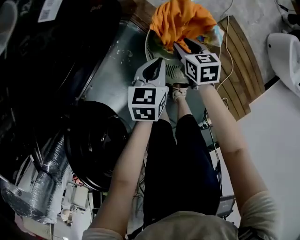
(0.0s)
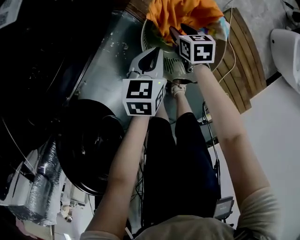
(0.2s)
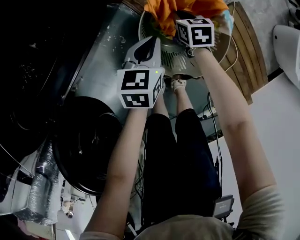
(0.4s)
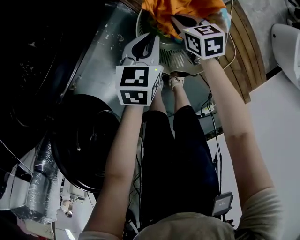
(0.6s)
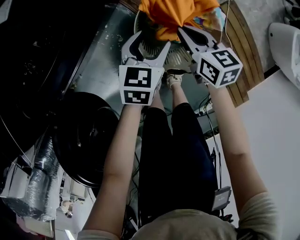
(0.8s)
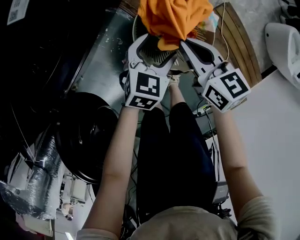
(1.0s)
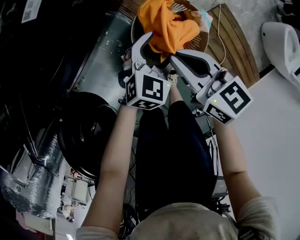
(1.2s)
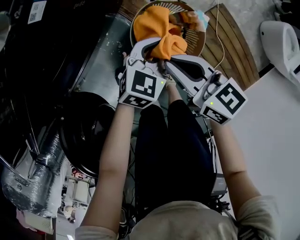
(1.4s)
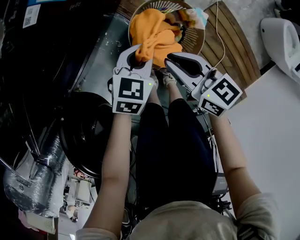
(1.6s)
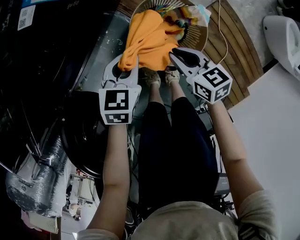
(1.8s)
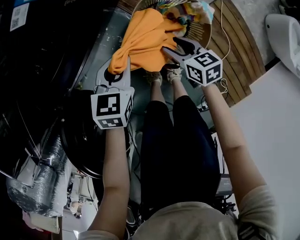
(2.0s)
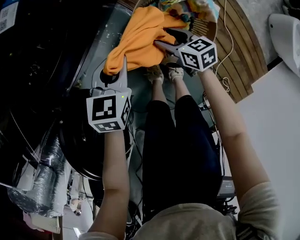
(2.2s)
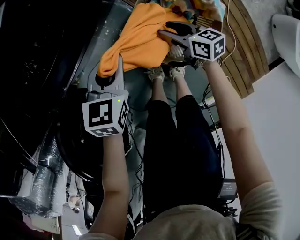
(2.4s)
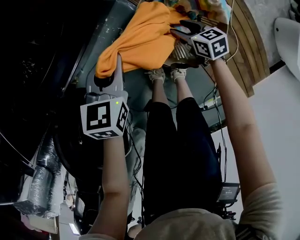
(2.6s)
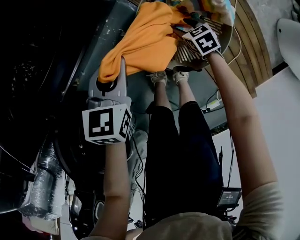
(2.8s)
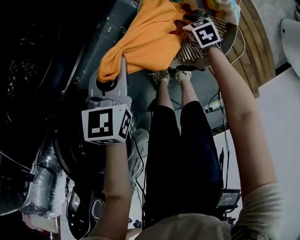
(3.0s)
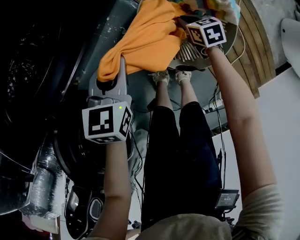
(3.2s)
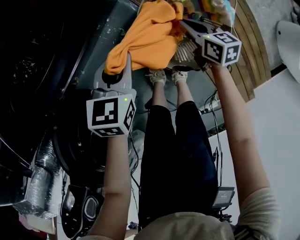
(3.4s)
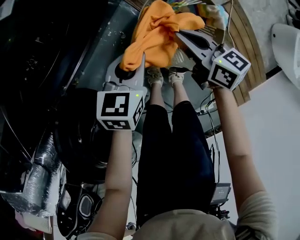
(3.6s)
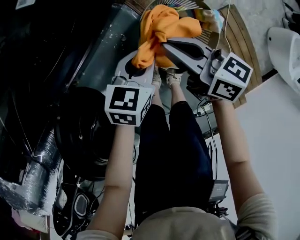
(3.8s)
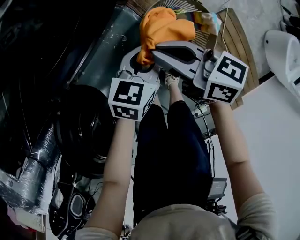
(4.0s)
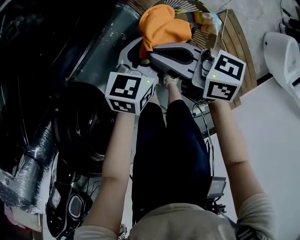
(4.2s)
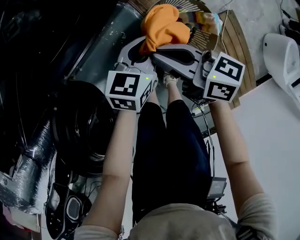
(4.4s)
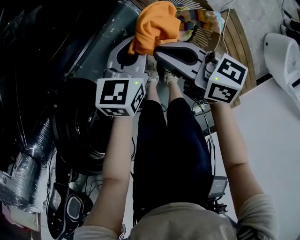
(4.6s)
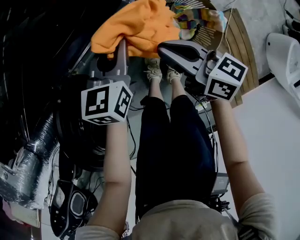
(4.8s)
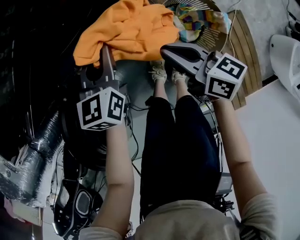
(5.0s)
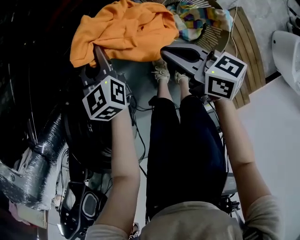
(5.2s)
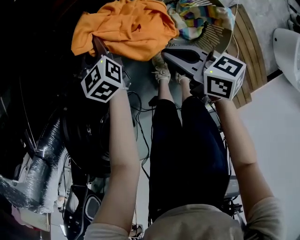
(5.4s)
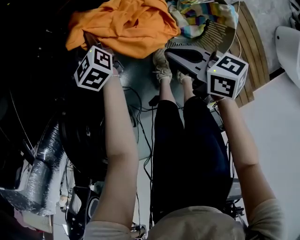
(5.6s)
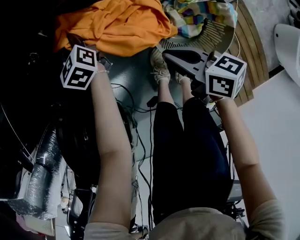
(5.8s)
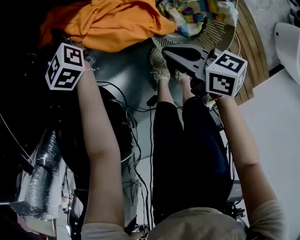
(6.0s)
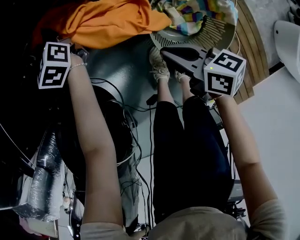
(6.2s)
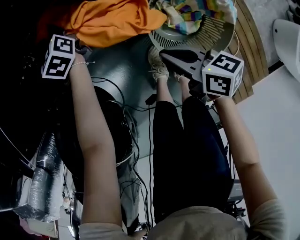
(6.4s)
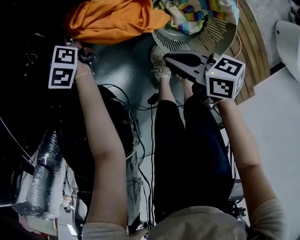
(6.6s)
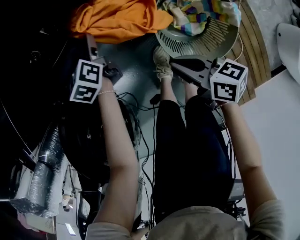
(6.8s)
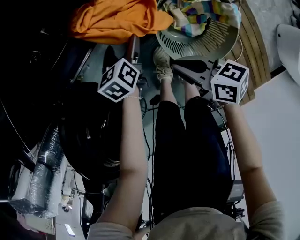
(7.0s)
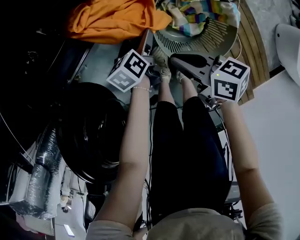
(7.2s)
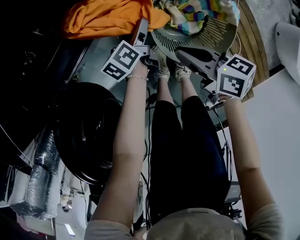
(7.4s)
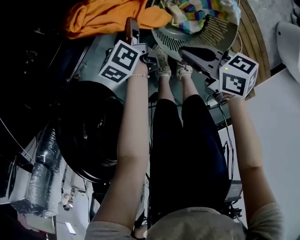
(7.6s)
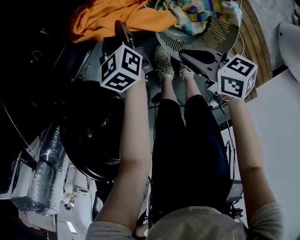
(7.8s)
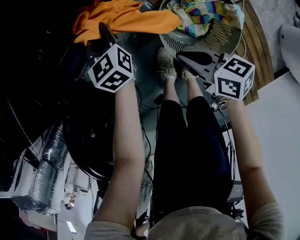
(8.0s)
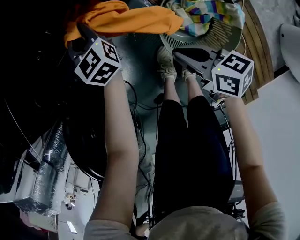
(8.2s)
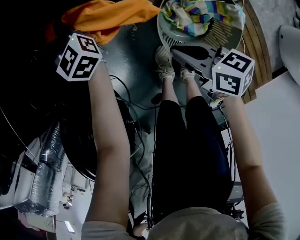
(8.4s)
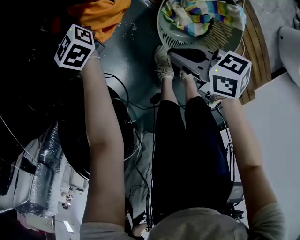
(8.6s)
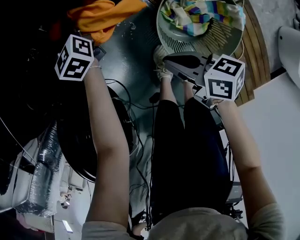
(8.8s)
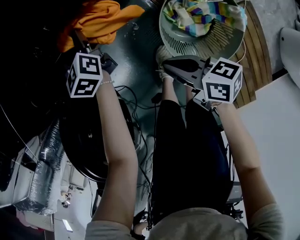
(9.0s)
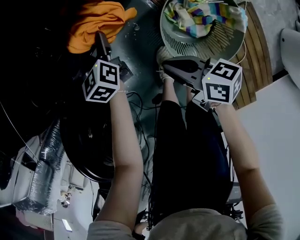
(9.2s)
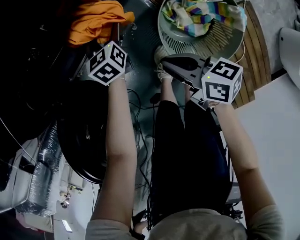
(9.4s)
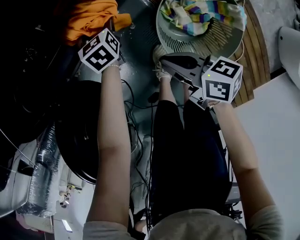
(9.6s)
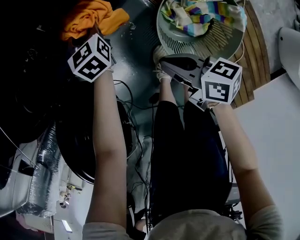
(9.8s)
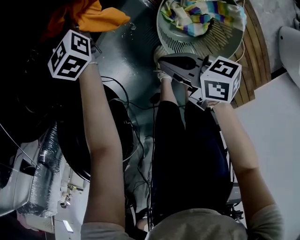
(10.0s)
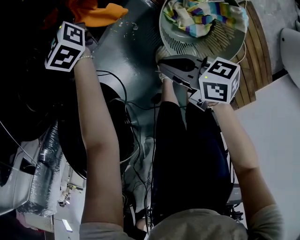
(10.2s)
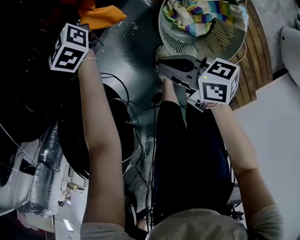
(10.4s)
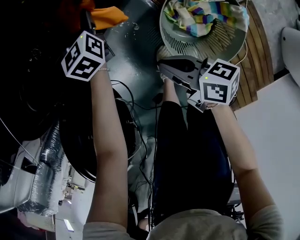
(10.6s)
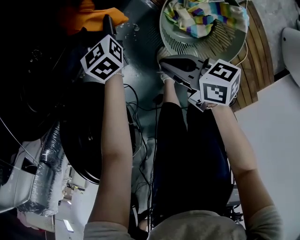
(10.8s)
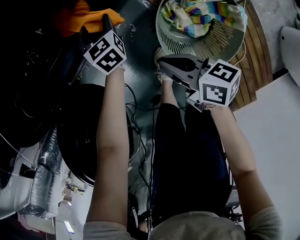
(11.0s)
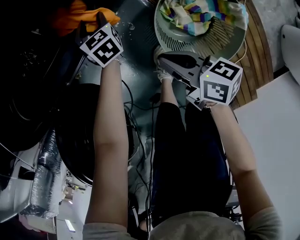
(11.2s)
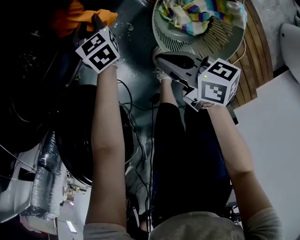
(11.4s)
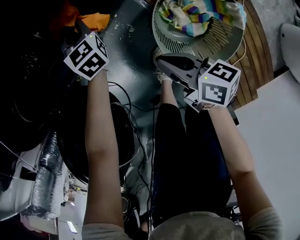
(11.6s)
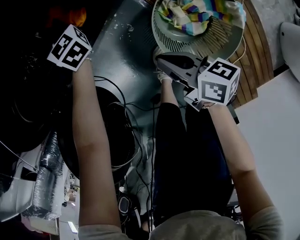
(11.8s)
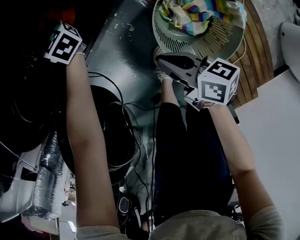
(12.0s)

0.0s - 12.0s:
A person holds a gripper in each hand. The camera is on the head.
0.0s - 1.6s: The right gripper swings up and down, some 35 cm each way, with 2 reversals, turns by some 30 degrees, and closes its fingers. Meanwhile the left gripper goes some 5 cm upward, changes its angle by approximately 20 degrees, and opens, then closes once more.
1.6s - 3.0s: The right gripper travels downward by some 35 cm, points its fingers roughly 40 degrees further downward, and opens its fingers; the left gripper travels to the left by approximately 10 cm, and changes its angle by roughly 20 degrees.
3.0s - 4.4s: The left gripper shifts about 10 cm to the right, and opens and closes again, while the right gripper moves upward, roughly 40 cm, tilts its fingers roughly 50 degrees upward, and closes.
4.4s - 6.0s: The right gripper moves downward, about 10 cm. Meanwhile the left gripper reaches some 10 cm downward, then returns, and swivels about 50 degrees.
6.0s - 7.6s: The left gripper moves some 25 cm, rolls counterclockwise, seen from behind, by approximately 40 degrees, and opens and closes again.
7.6s - 9.0s: The right gripper shifts approximately 5 cm to the left. Meanwhile the left gripper heads forward, to the left and upward, covering roughly 20 cm, turns by approximately 40 degrees, and opens up.
9.0s - 10.4s: The left gripper is displaced to the right and forward by approximately 10 cm.
10.4s - 12.0s: The left gripper reaches roughly 10 cm backward, then returns, changes its angle by about 20 degrees, and closes up.

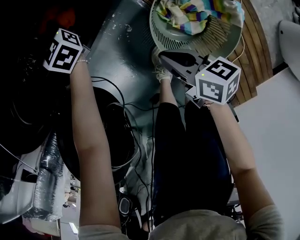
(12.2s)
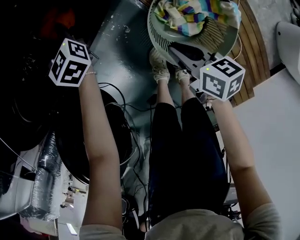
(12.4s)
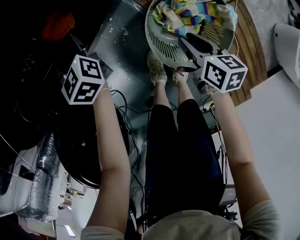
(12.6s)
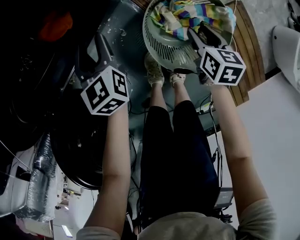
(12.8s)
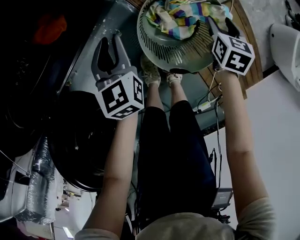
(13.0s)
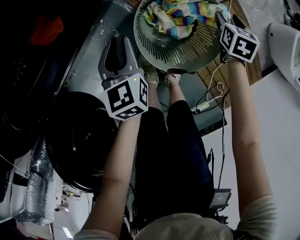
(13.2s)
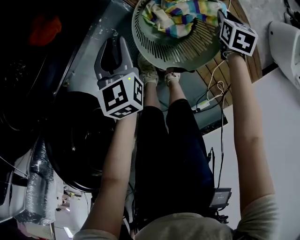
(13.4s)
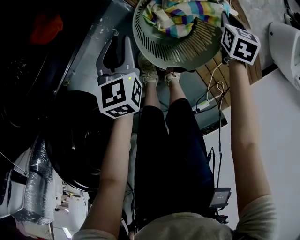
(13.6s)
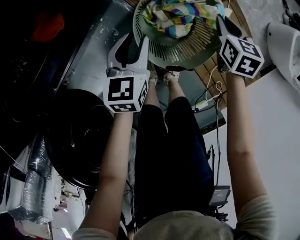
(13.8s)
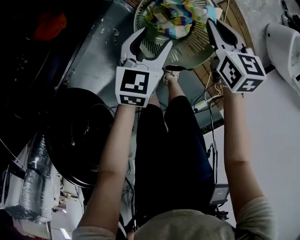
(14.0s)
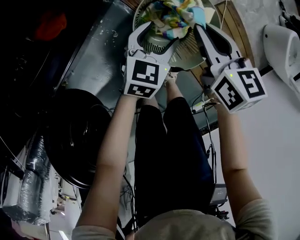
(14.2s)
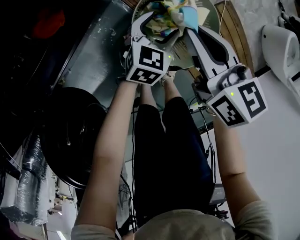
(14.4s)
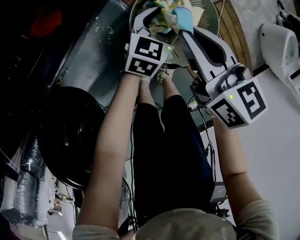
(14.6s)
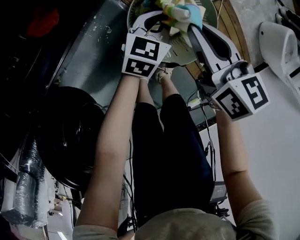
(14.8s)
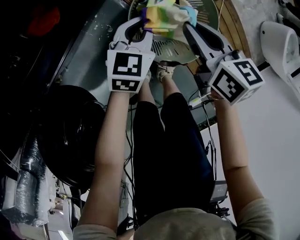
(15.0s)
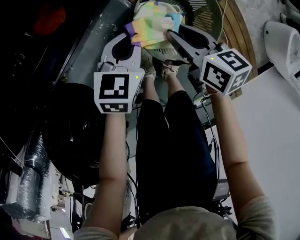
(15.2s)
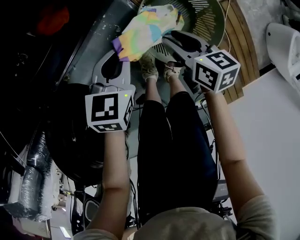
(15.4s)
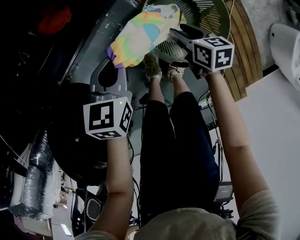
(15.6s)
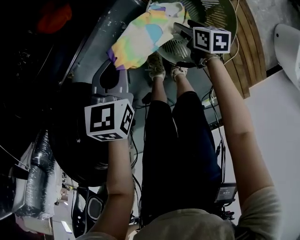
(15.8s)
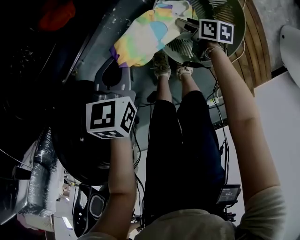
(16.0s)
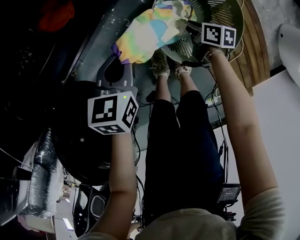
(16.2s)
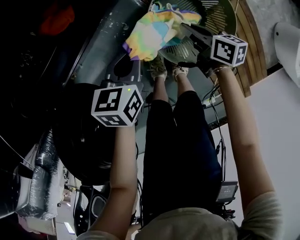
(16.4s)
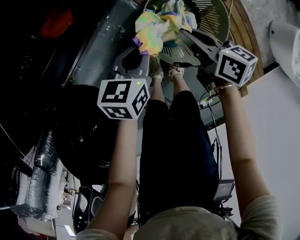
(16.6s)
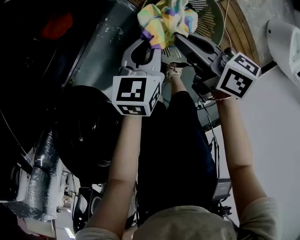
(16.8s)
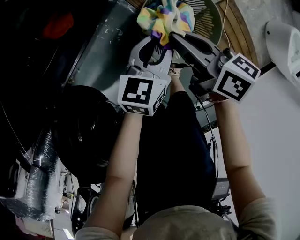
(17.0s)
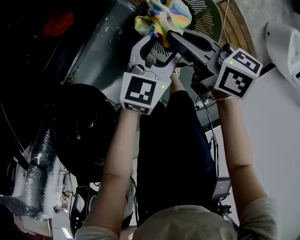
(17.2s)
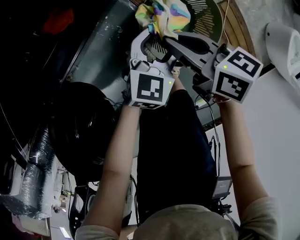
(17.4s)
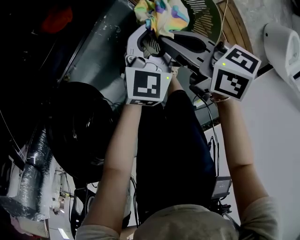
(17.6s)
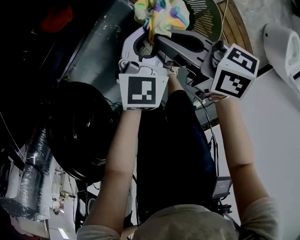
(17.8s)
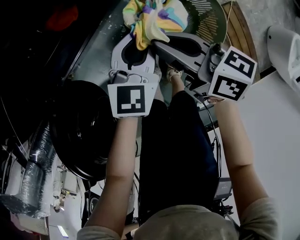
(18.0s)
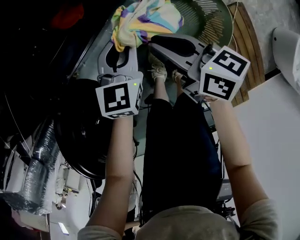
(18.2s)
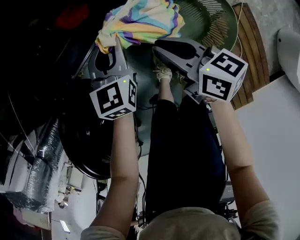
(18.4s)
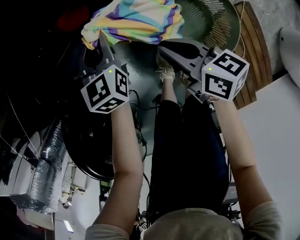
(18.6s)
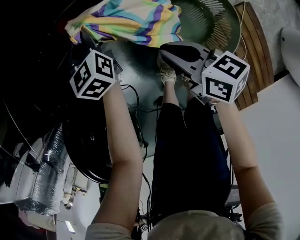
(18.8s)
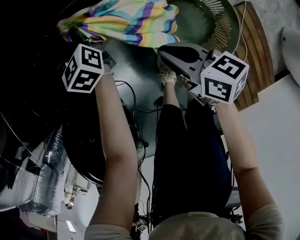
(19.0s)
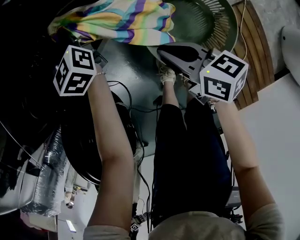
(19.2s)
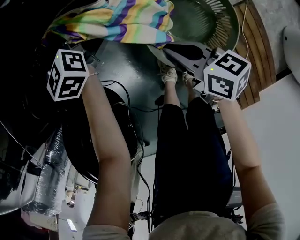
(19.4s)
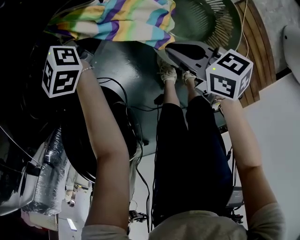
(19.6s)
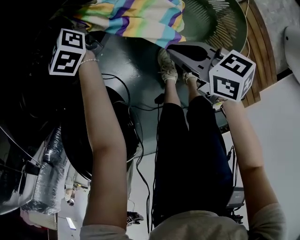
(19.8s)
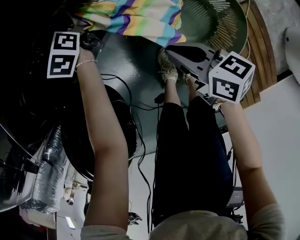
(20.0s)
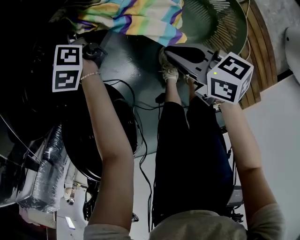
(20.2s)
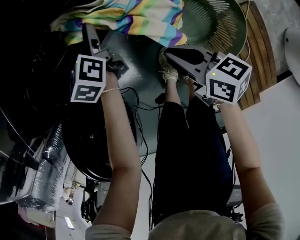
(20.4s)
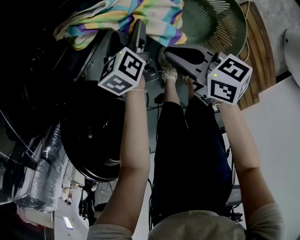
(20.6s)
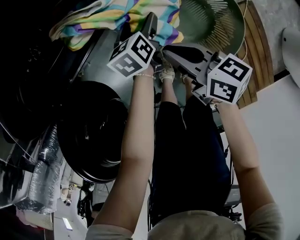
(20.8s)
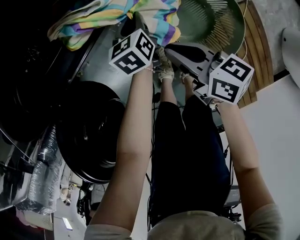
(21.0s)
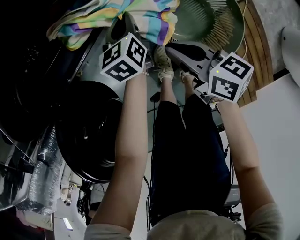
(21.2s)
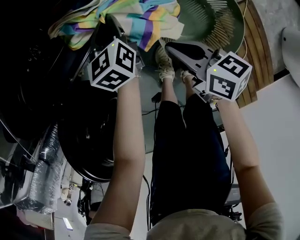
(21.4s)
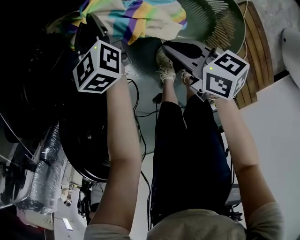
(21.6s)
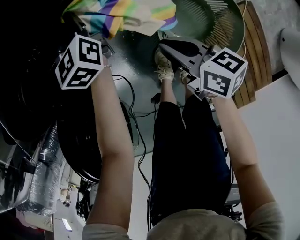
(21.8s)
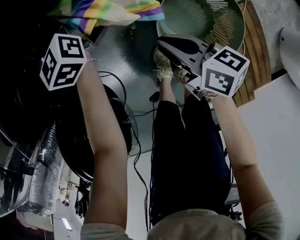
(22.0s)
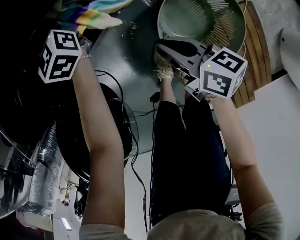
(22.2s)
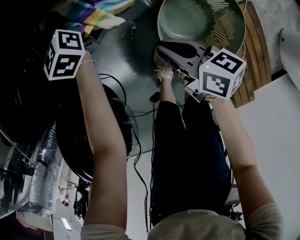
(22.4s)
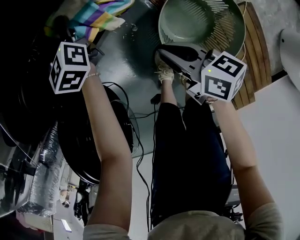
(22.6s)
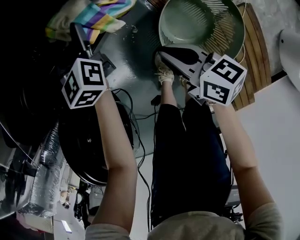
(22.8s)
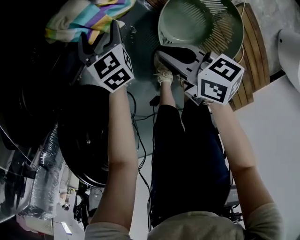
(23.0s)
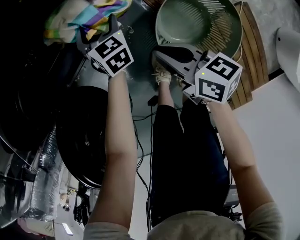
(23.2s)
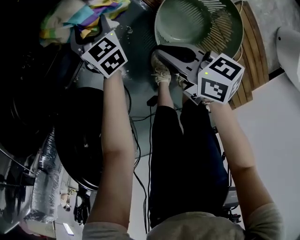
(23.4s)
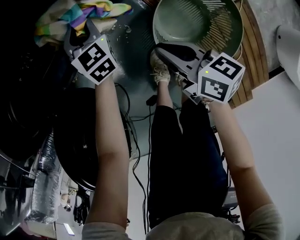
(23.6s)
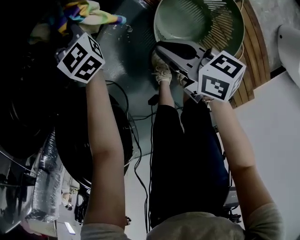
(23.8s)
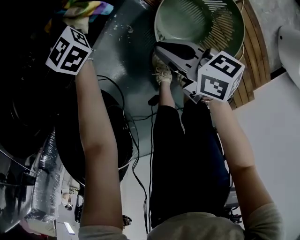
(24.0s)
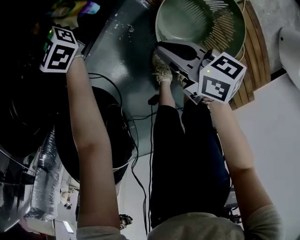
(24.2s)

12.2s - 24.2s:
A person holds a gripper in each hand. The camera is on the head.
12.2s - 13.8s: The right gripper moves approximately 30 cm, turns by approximately 50 degrees, and opens, then closes once more; the left gripper moves some 35 cm, and changes its angle by some 50 degrees.
13.8s - 15.2s: The right gripper moves to the left, backward and upward, about 20 cm, and swivels about 40 degrees, while the left gripper travels to the right and back again, some 10 cm each way, and opens, then closes again.
15.2s - 16.6s: The right gripper goes downward and returns, approximately 25 cm each way, and closes up. The left gripper reaches some 10 cm to the left, then returns, and turns by about 20 degrees.
16.6s - 18.2s: The right gripper goes about 15 cm to the left and upward. The left gripper heads to the left, covering roughly 5 cm, turns by approximately 30 degrees, and opens, then closes once more.
18.2s - 19.8s: The right gripper goes approximately 10 cm downward. Meanwhile the left gripper swings up and down, approximately 5 cm each way, with 2 reversals, and changes its angle by roughly 40 degrees.
19.8s - 21.2s: The left gripper shifts approximately 20 cm backward and to the right, swivels roughly 30 degrees, and opens, then closes again.
21.2s - 22.6s: The left gripper goes about 20 cm forward, upward and to the left, turns by roughly 30 degrees, and opens its fingers.
22.6s - 24.2s: The left gripper goes backward and returns, some 10 cm each way, and closes its fingers.
